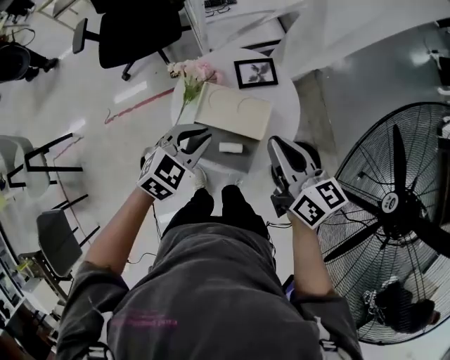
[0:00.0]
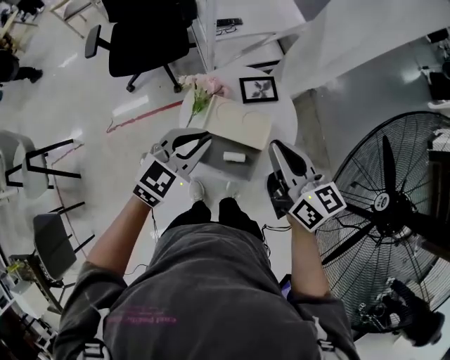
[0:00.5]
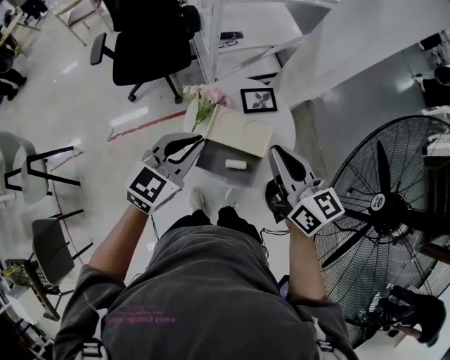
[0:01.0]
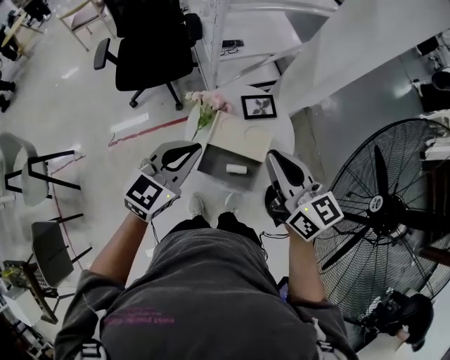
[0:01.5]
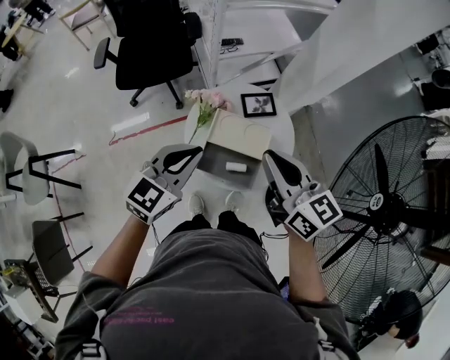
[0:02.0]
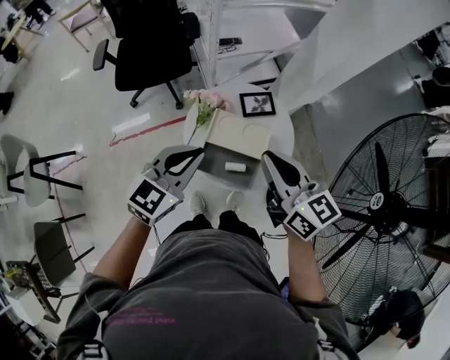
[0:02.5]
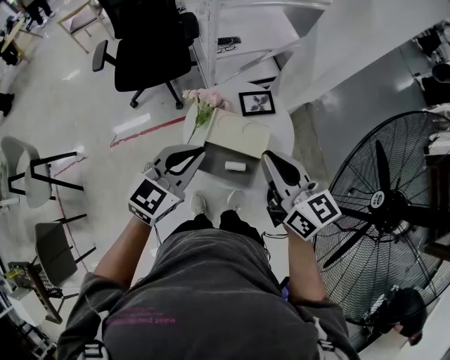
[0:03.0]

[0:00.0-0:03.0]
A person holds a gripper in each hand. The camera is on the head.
0:00.0 to 0:01.5: Both grippers travel together upward and to the left, some 15 cm. The left gripper rotates about 30 degrees.
0:01.5 to 0:03.0: The grippers make only small movements.

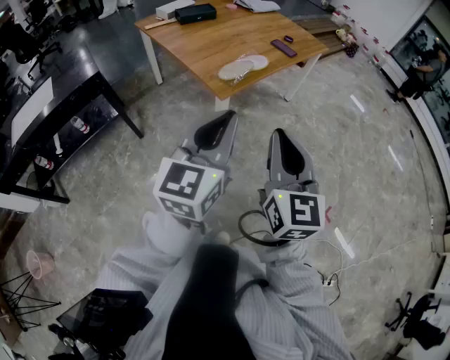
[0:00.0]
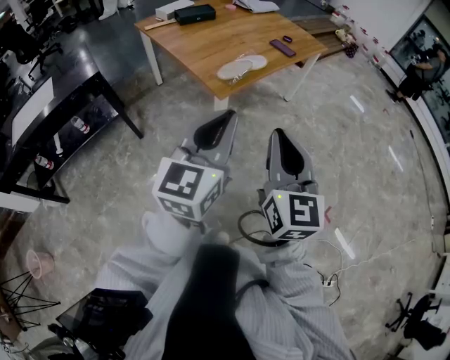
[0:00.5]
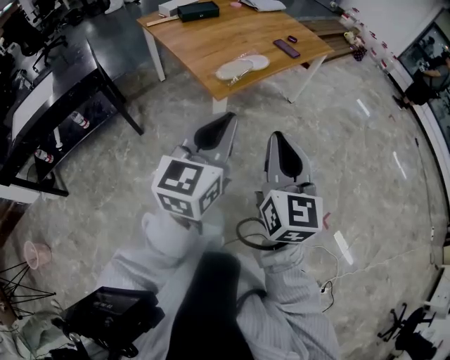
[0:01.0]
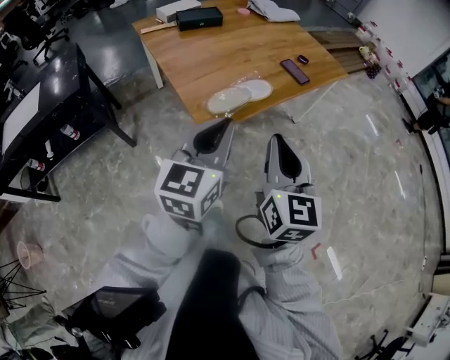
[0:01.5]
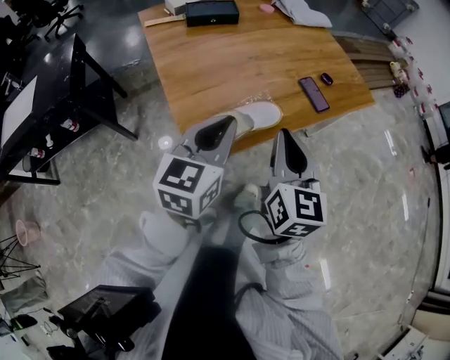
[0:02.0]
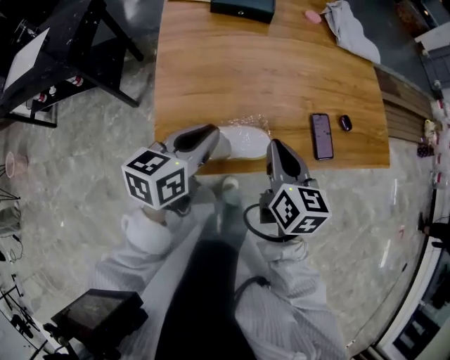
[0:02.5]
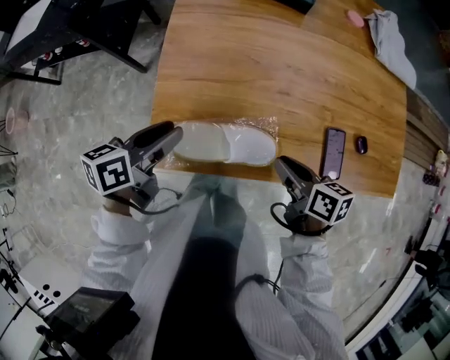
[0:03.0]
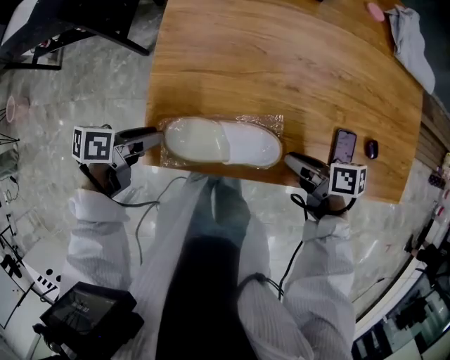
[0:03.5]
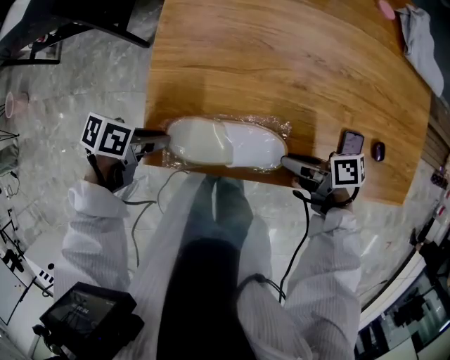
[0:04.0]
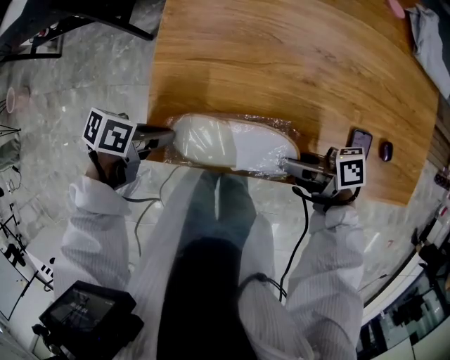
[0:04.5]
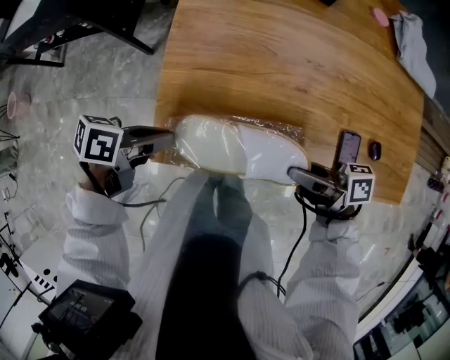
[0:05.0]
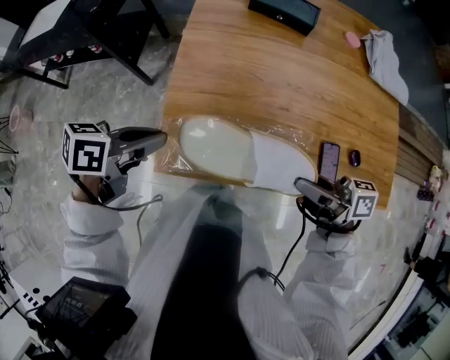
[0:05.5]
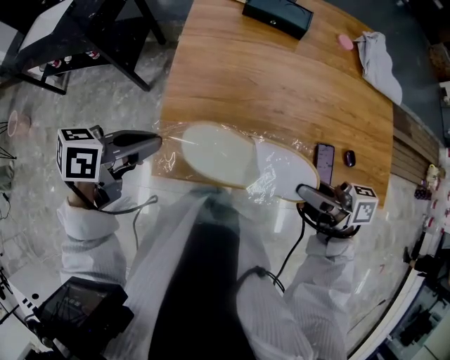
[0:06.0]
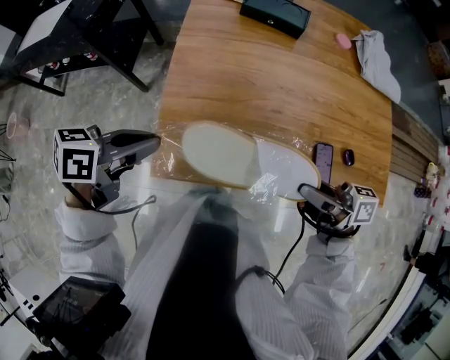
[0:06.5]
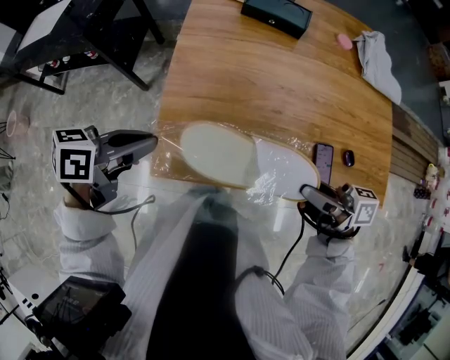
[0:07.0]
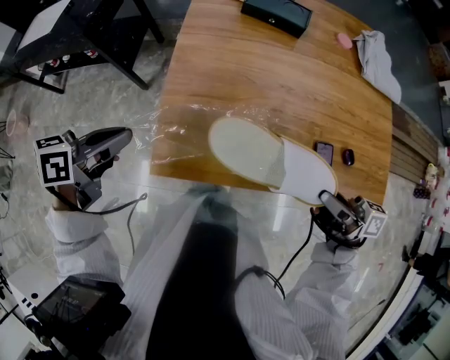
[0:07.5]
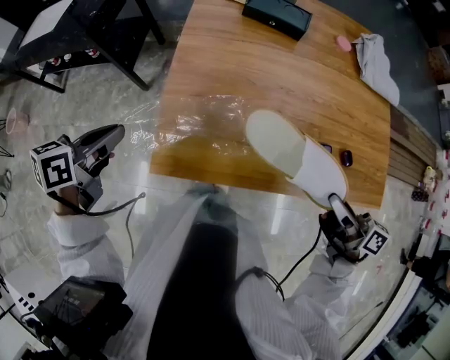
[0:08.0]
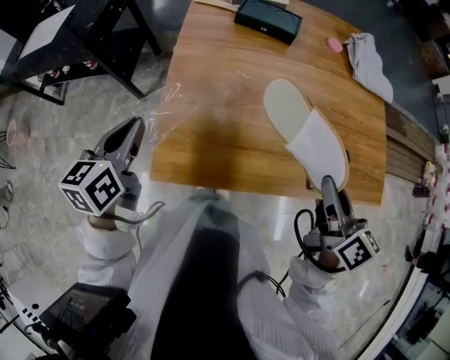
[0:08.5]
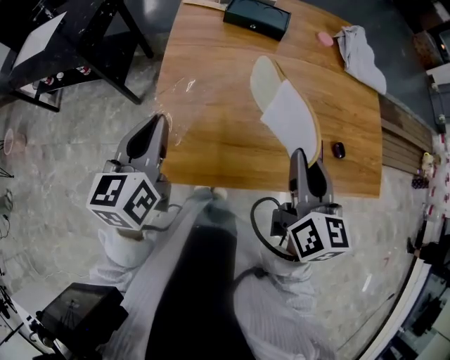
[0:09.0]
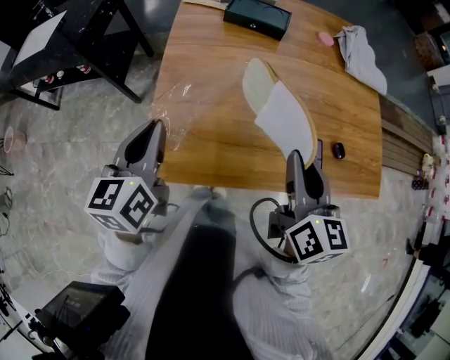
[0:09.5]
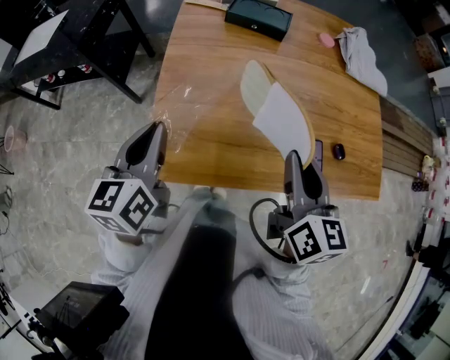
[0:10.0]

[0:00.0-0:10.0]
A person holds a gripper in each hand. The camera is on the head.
0:00.0 to 0:02.0: The two grippers travel together, forward, about 40 cm. The left gripper changes its angle by about 20 degrees.
0:02.0 to 0:04.0: Both grippers travel together downward, roughly 30 cm. The left gripper tilts its fingers roughly 40 degrees downward, and opens; the right gripper rotates some 110 degrees, and opens its fingers.
0:04.0 to 0:06.0: The grippers both shift upward by about 20 cm. The right gripper rotates some 30 degrees. Meanwhile the left gripper rotates some 30 degrees, and closes up.
0:06.0 to 0:08.0: The right gripper ends up approximately 10 cm from where it was, and changes its angle by roughly 30 degrees; the left gripper moves about 10 cm.
0:08.0 to 0:10.0: The right gripper is displaced to the left, upward and forward by about 15 cm, and swivels about 50 degrees. The left gripper shifts approximately 10 cm to the right, and rotates approximately 30 degrees.

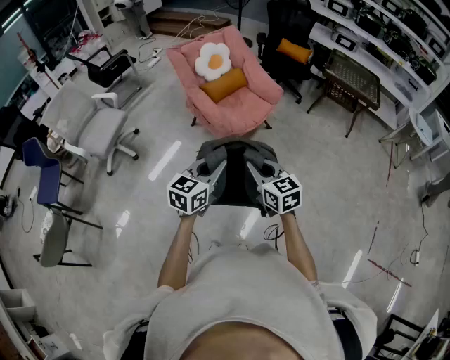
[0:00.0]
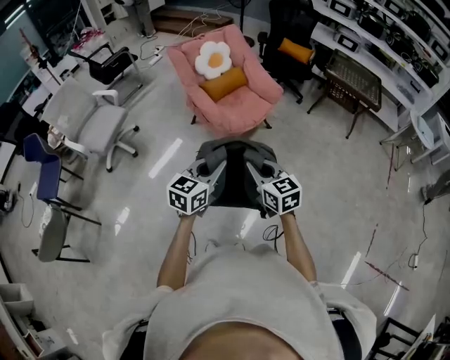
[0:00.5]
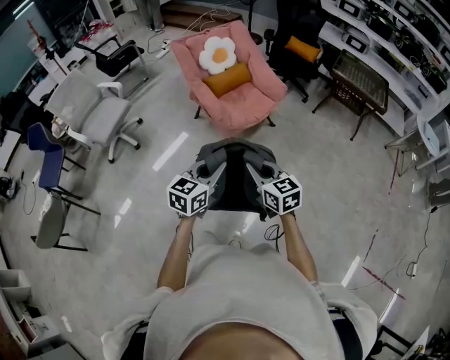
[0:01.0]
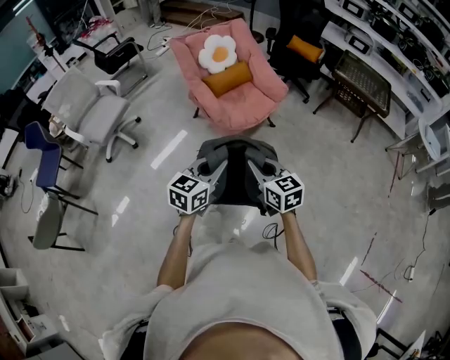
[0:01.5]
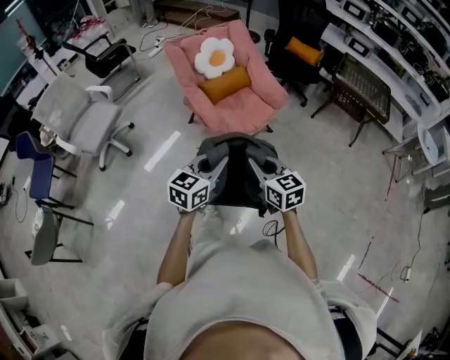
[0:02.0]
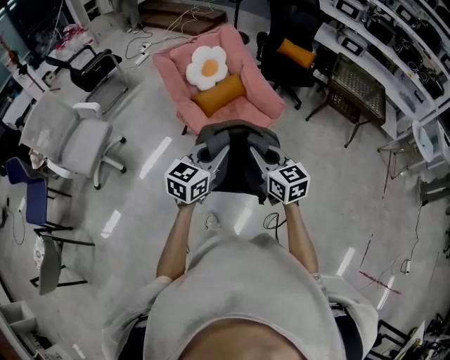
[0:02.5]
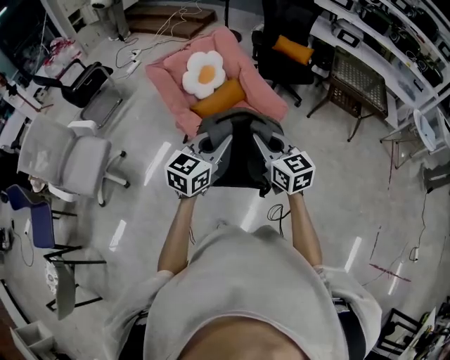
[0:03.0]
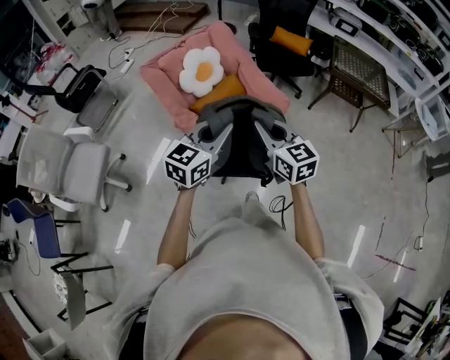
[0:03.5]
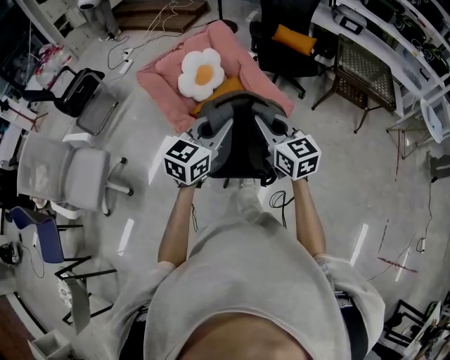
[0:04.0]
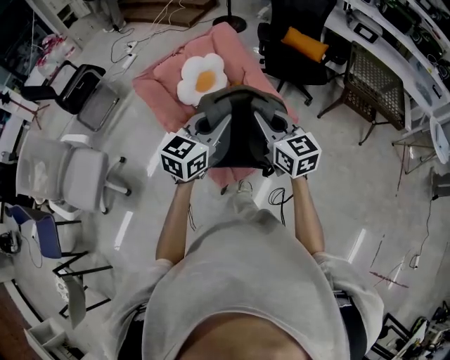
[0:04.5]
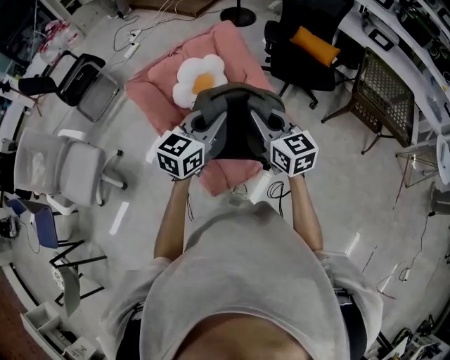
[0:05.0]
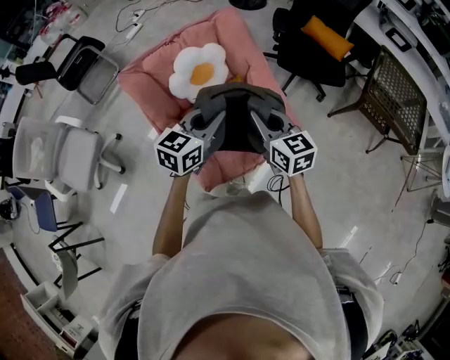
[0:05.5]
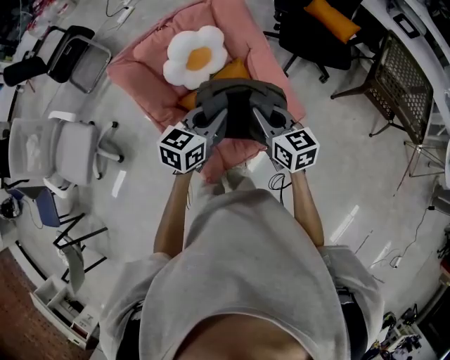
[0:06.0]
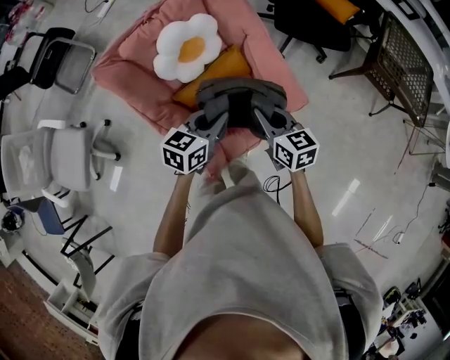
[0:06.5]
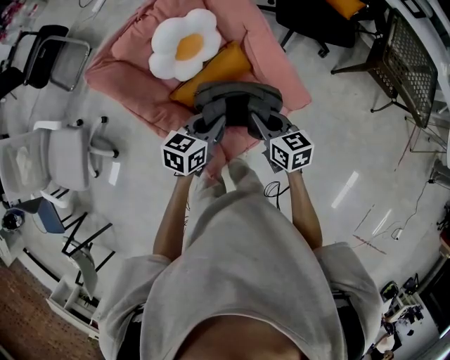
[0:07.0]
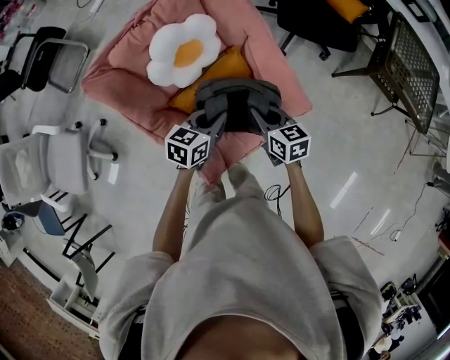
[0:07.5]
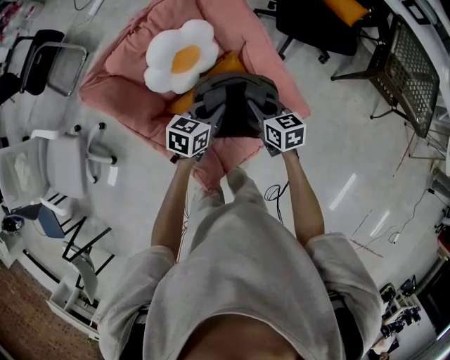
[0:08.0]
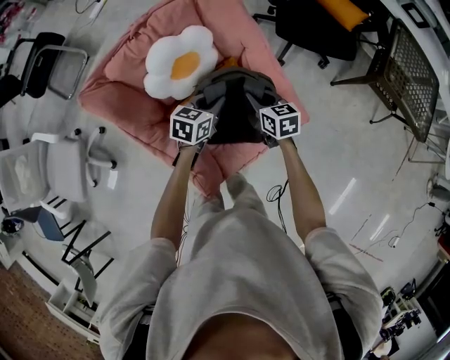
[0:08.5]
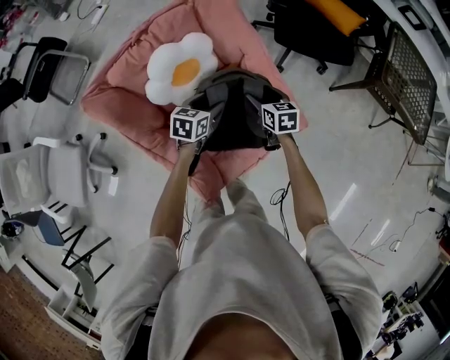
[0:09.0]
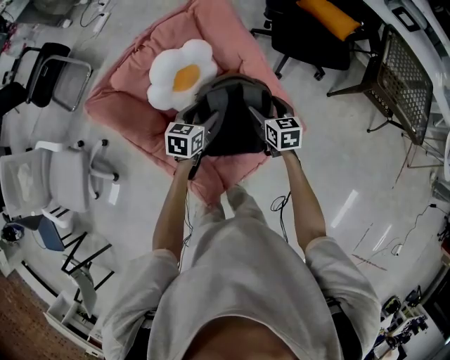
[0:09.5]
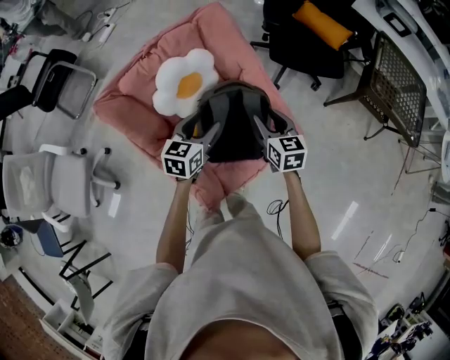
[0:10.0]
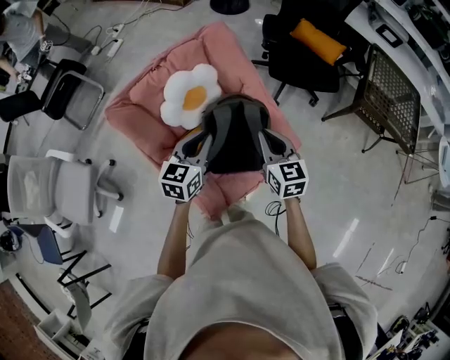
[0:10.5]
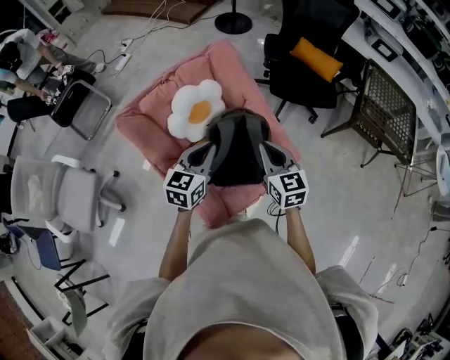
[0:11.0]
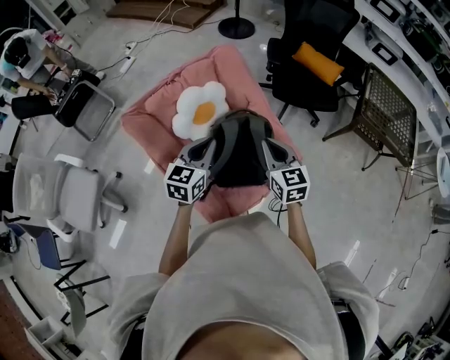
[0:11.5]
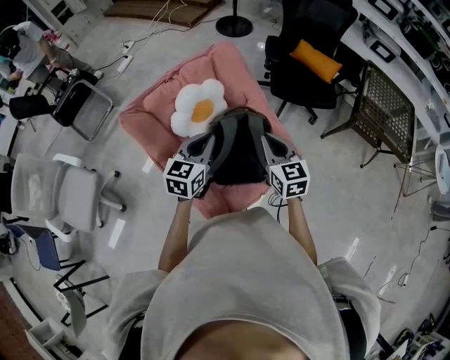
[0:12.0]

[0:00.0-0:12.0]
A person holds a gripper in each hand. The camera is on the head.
0:00.0 to 0:02.0: Both grippers travel together forward, some 15 cm.
0:02.0 to 0:04.0: The two grippers go some 40 cm forward.
0:04.0 to 0:06.0: The two grippers go some 35 cm forward and downward. The right gripper changes its angle by some 20 degrees. The left gripper rotates some 20 degrees.
0:06.0 to 0:08.0: Both grippers move downward and forward, about 20 cm.
0:08.0 to 0:10.0: Both grippers travel together upward, approximately 10 cm. The left gripper opens up, while the right gripper opens up.
0:10.0 to 0:12.0: The grippers both shift upward and backward by some 15 cm. The left gripper closes up. Meanwhile the right gripper closes.

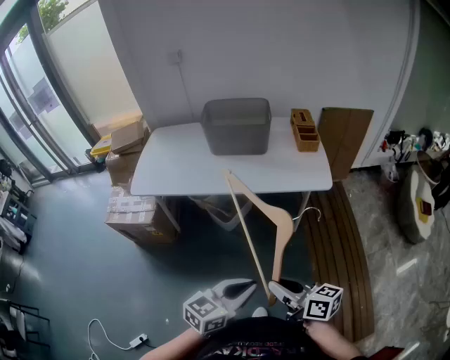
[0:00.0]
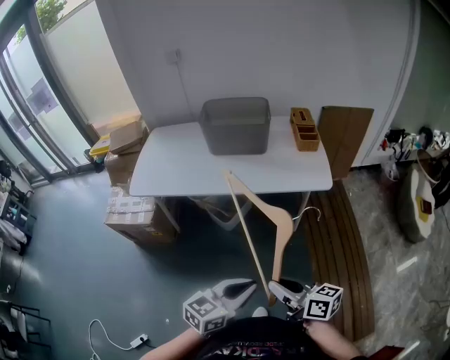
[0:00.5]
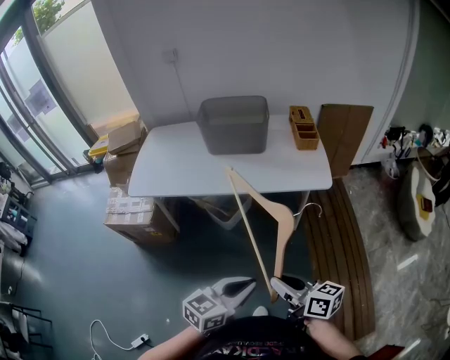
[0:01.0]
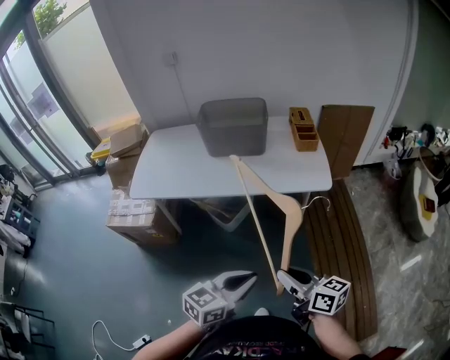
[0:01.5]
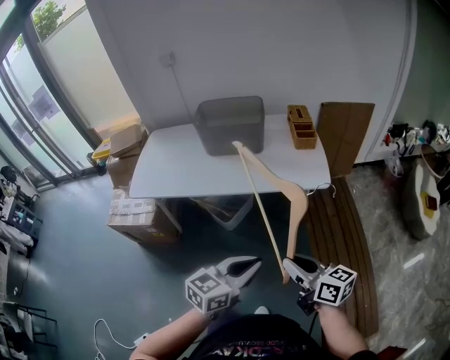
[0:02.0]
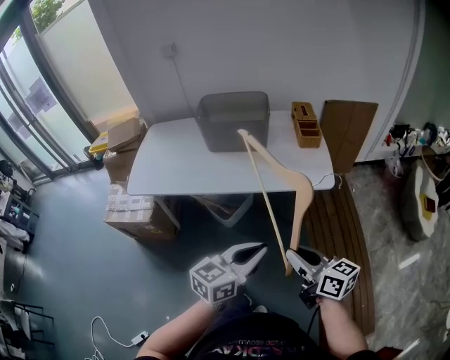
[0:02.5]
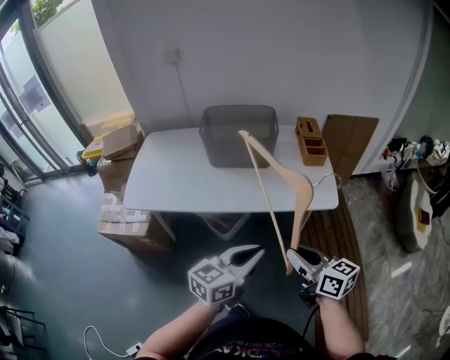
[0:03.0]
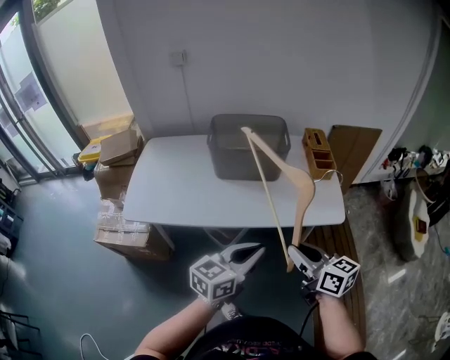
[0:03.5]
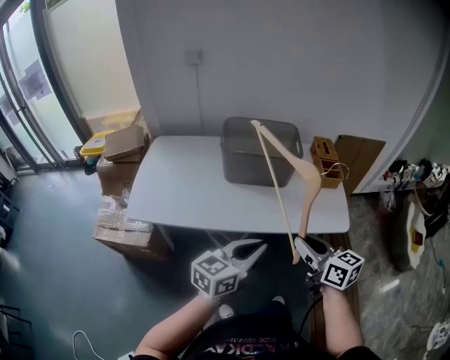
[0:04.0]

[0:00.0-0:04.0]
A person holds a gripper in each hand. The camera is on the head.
0:00.0 to 0:02.0: The right gripper is displaced forward and to the right by roughly 10 cm, while the left gripper shifts approximately 10 cm forward.
0:02.0 to 0:04.0: Both grippers travel together forward and to the left, approximately 30 cm.
